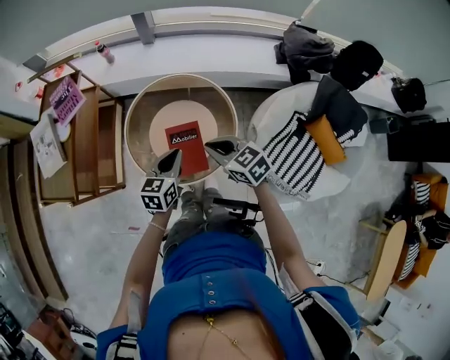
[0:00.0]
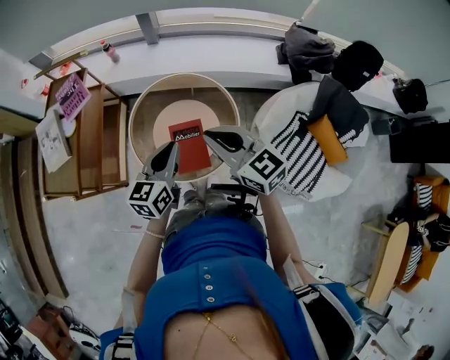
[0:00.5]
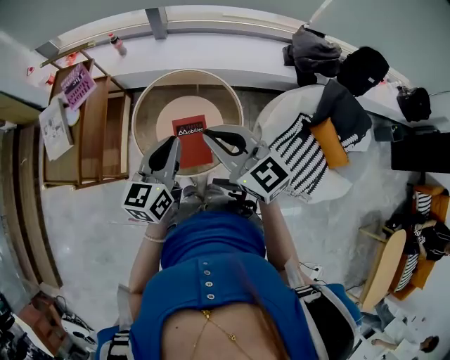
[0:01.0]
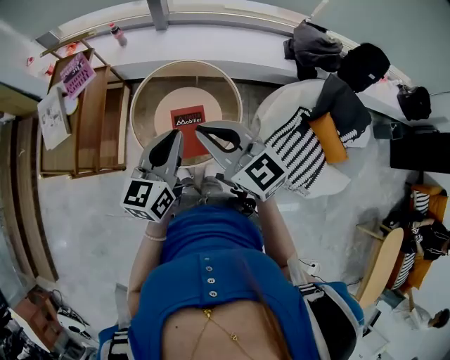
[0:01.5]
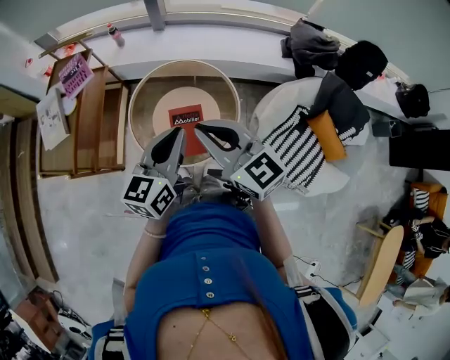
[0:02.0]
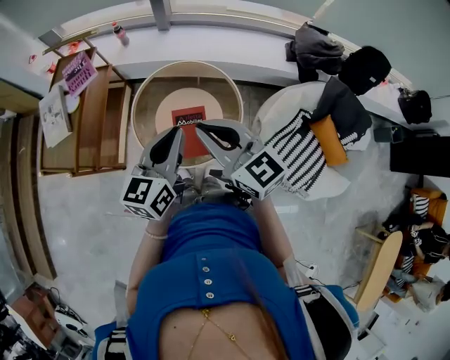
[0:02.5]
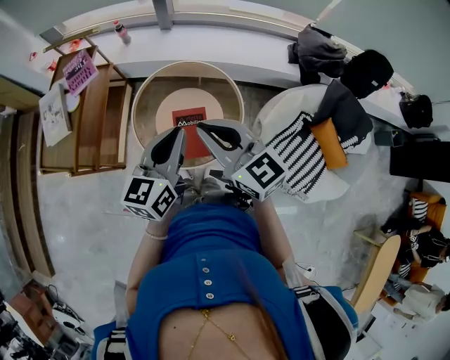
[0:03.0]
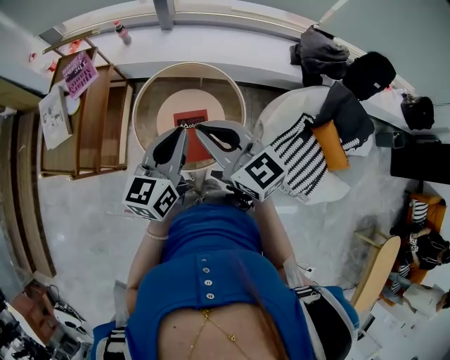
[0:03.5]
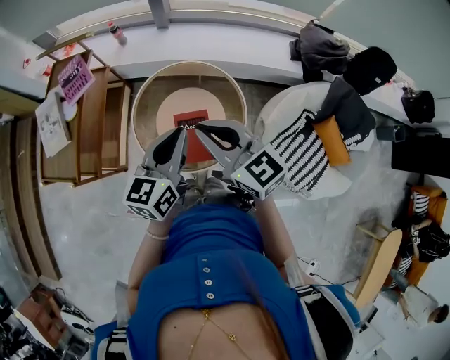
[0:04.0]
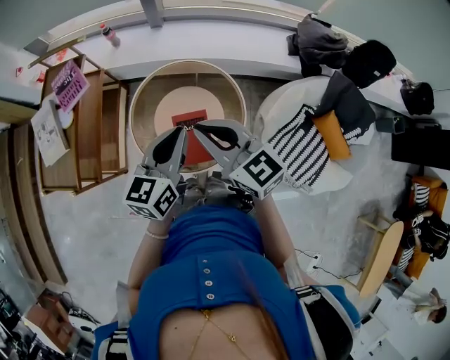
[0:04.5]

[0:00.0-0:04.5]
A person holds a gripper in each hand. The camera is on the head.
0:00.0 to 0:02.0: Both grippers travel together upward, about 20 cm. The right gripper rotates roughly 30 degrees.
0:02.0 to 0:04.5: Both grippers travel together forward, approximately 10 cm.

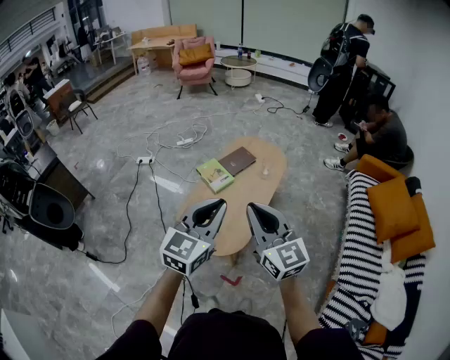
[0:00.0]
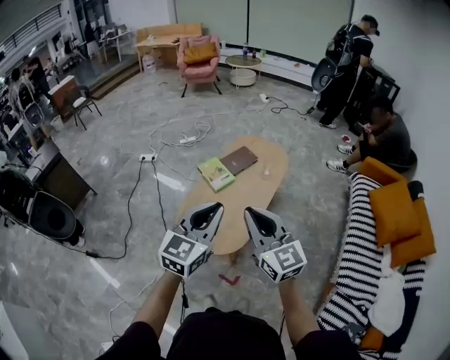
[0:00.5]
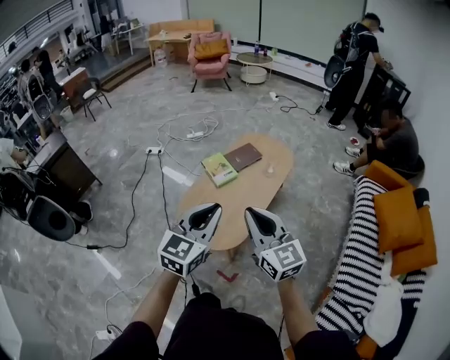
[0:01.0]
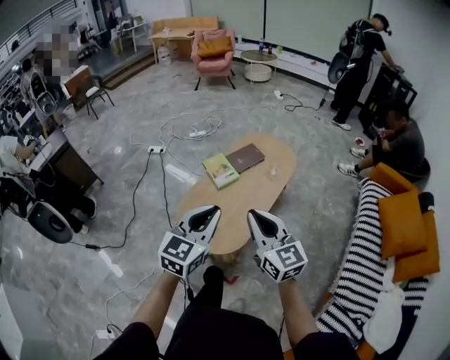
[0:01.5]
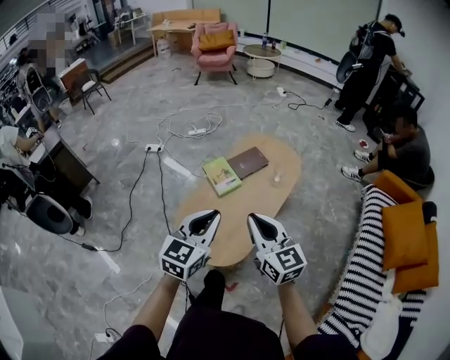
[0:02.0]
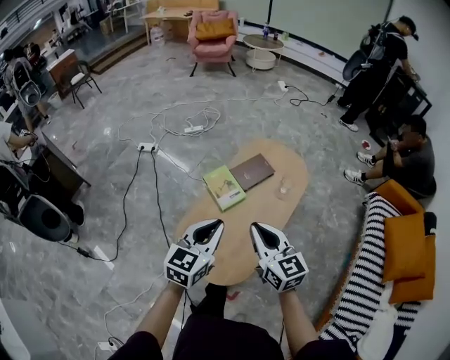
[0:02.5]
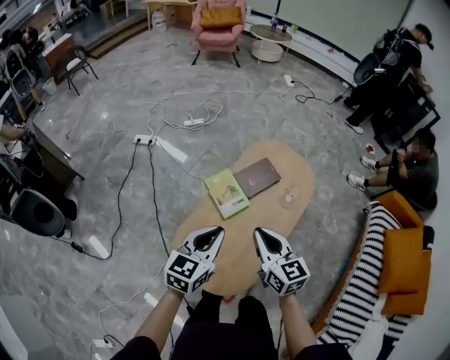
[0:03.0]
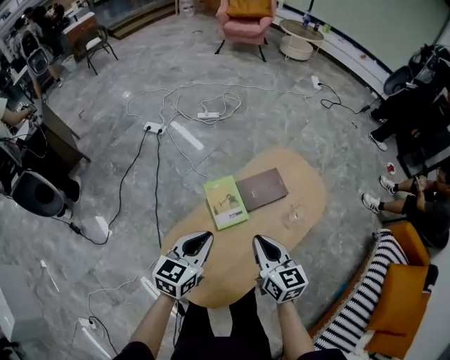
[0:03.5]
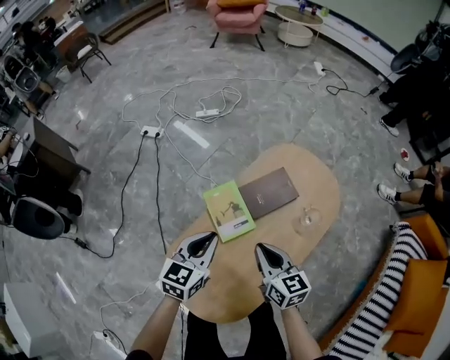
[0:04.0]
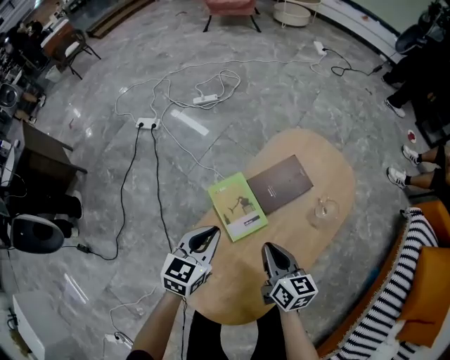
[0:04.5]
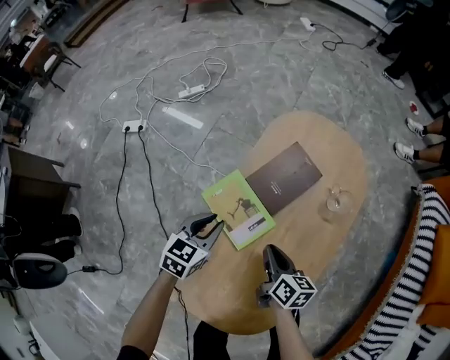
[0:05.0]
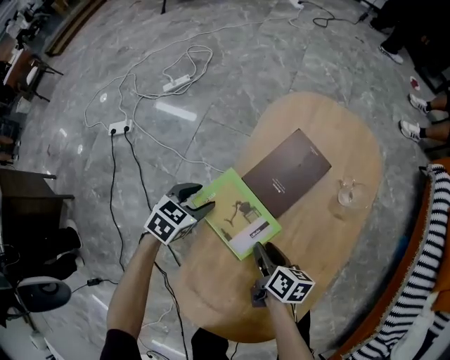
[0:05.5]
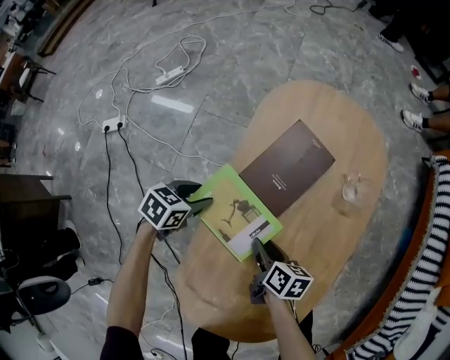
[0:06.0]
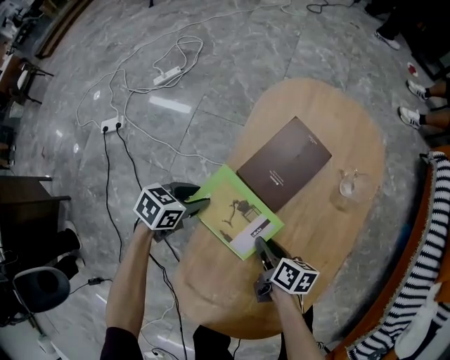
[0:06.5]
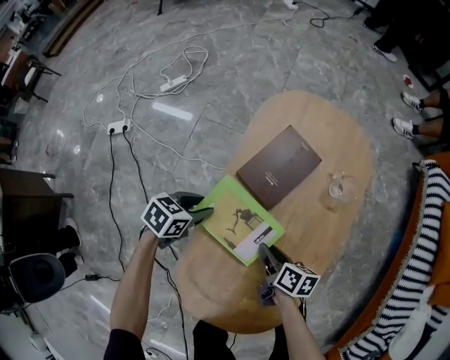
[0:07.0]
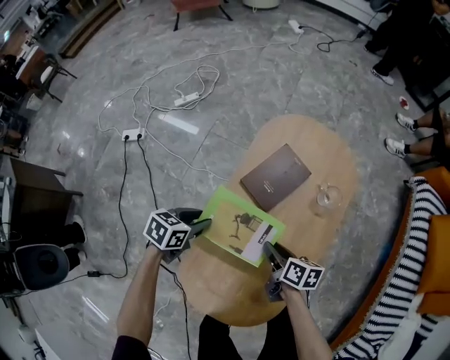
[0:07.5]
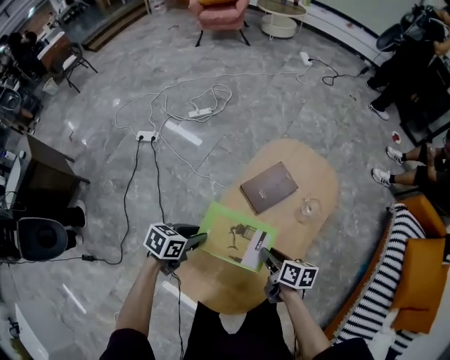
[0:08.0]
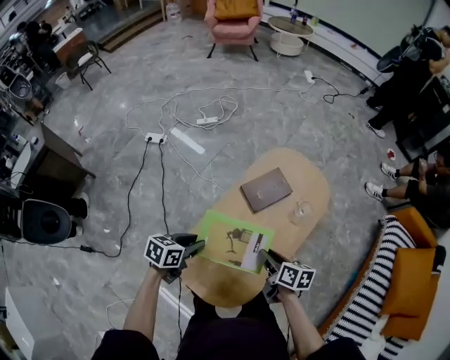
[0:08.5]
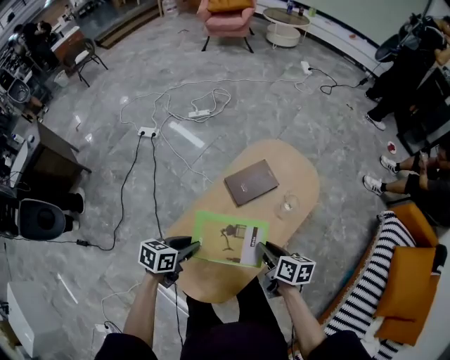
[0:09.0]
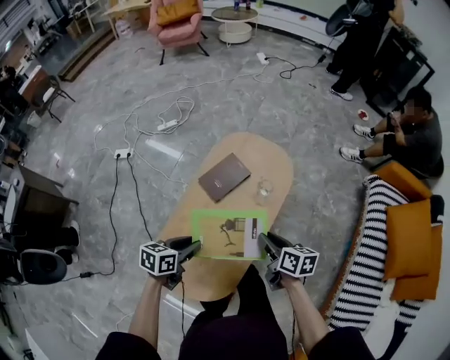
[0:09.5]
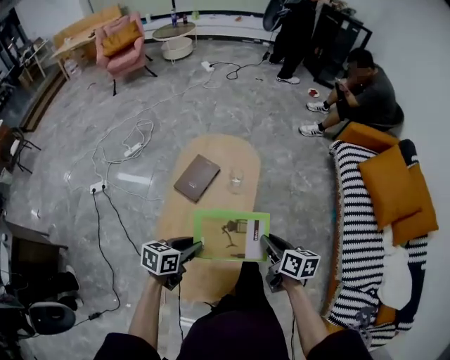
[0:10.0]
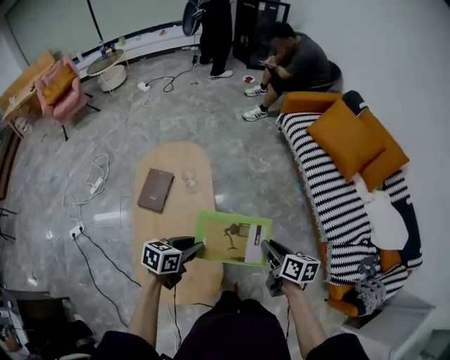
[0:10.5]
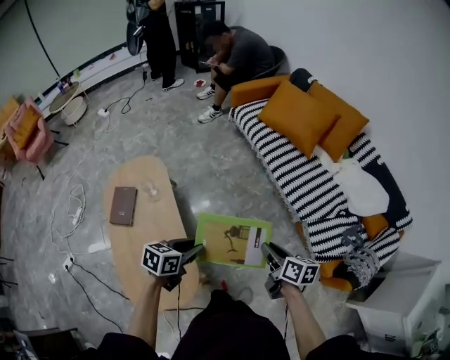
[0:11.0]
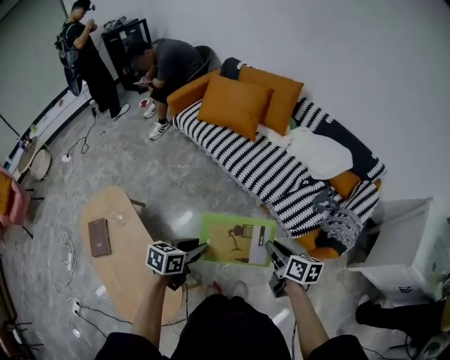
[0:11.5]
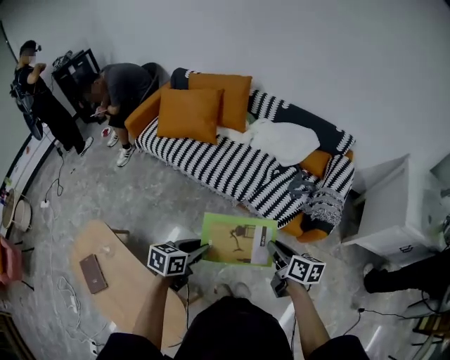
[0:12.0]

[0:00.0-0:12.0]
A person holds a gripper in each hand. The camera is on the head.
0:00.0 to 0:02.0: Both grippers travel together forward and downward, about 15 cm.
0:02.0 to 0:04.0: The pair of grippers is taken forward, some 40 cm. The two grippers go roughly 25 cm downward. The left gripper rotates about 20 degrees; the right gripper rotates about 30 degrees.
0:04.0 to 0:06.0: Both grippers move downward, some 35 cm. The right gripper twists some 50 degrees clockwise, seen from behind, and opens up; the left gripper turns by about 50 degrees, and opens its fingers.
0:06.0 to 0:08.0: The left gripper is displaced upward and backward by about 35 cm, and swivels some 20 degrees. Meanwhile the right gripper moves upward, approximately 30 cm.
0:08.0 to 0:10.0: The right gripper ends up approximately 30 cm from where it was, and changes its angle by approximately 30 degrees. Meanwhile the left gripper shifts by approximately 25 cm.
0:10.0 to 0:12.0: Both grippers are carried about 60 cm. The left gripper rotates about 70 degrees. Meanwhile the right gripper changes its angle by some 70 degrees.

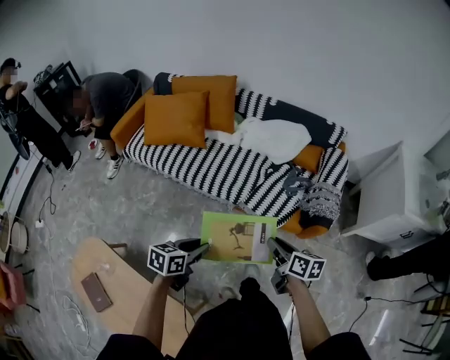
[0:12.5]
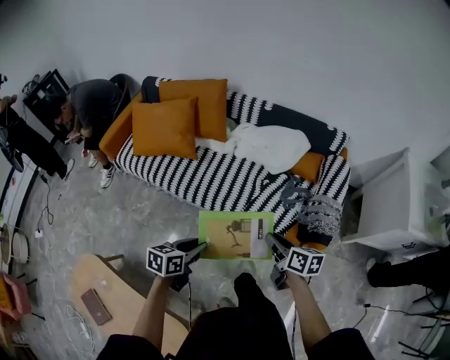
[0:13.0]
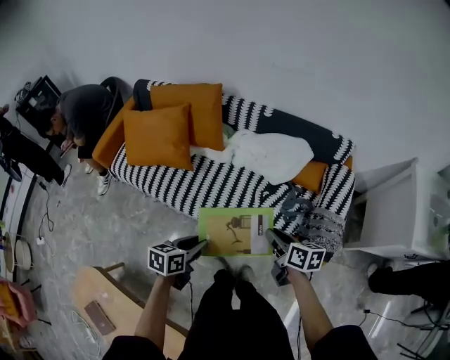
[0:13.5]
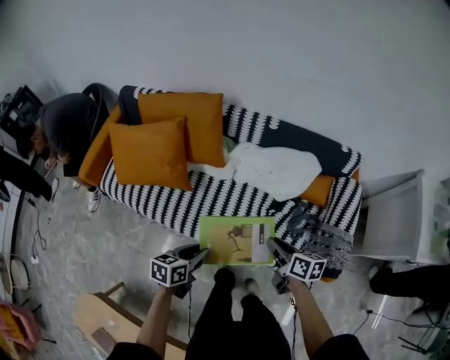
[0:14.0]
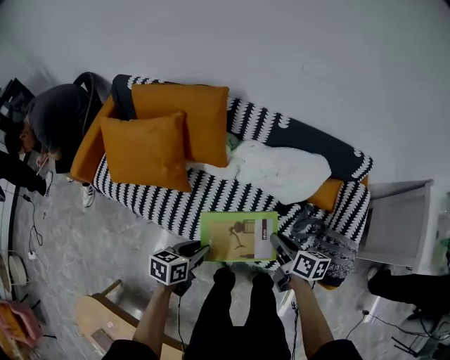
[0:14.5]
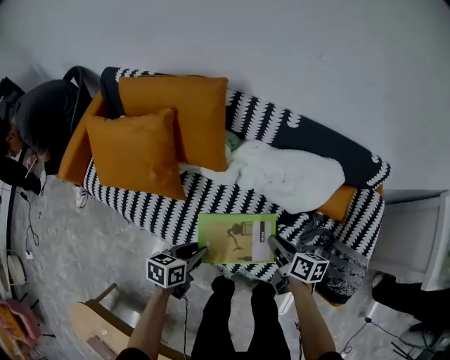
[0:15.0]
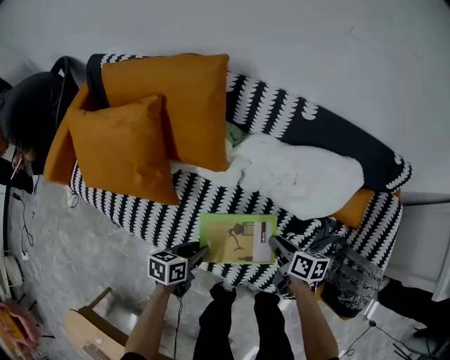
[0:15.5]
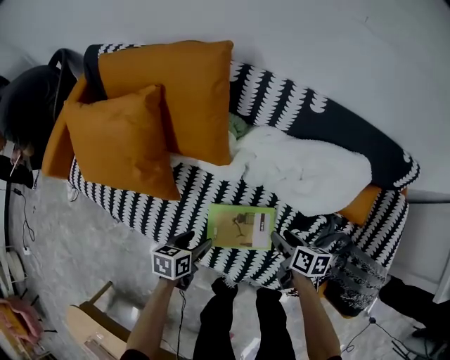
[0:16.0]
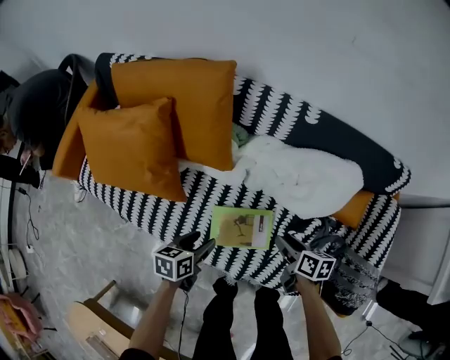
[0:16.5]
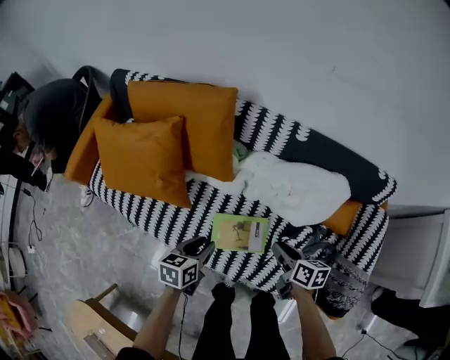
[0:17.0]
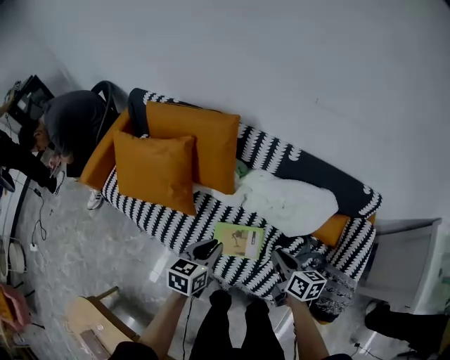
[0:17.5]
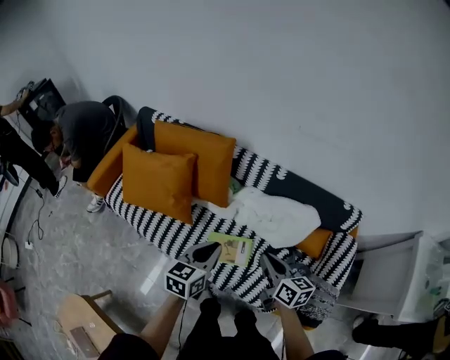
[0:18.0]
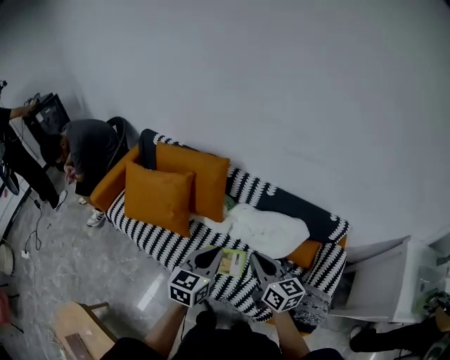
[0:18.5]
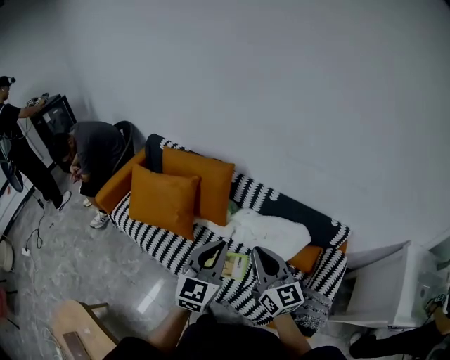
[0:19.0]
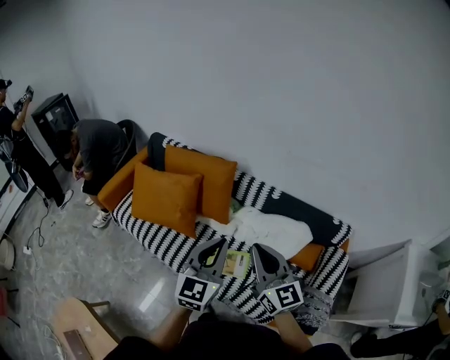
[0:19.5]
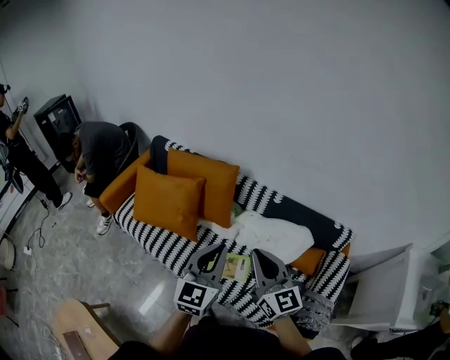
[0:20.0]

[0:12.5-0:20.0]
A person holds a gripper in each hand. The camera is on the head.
0:12.5 to 0:14.5: The pair of grippers is taken forward, roughly 40 cm.
0:14.5 to 0:16.5: Both grippers travel together downward and forward, about 25 cm. The left gripper opens its fingers. The right gripper opens up.
0:16.5 to 0:18.0: Both grippers travel together upward, roughly 35 cm. The right gripper changes its angle by about 30 degrees, and closes up; the left gripper rotates approximately 30 degrees, and closes up.
0:18.0 to 0:20.0: The two grippers go about 20 cm upward. The left gripper turns by some 30 degrees. The right gripper swivels some 40 degrees.

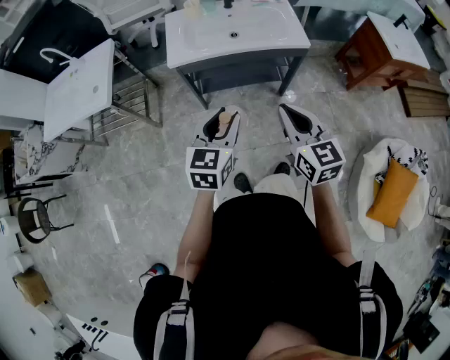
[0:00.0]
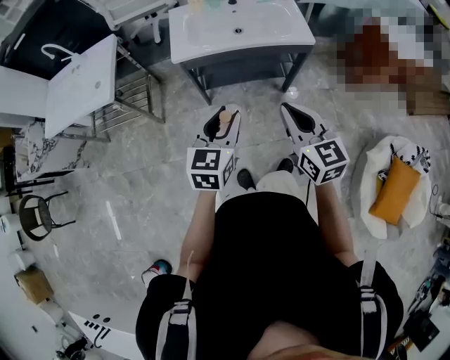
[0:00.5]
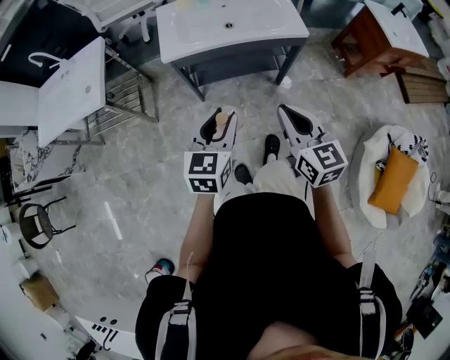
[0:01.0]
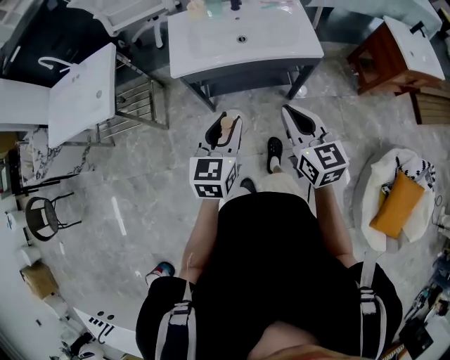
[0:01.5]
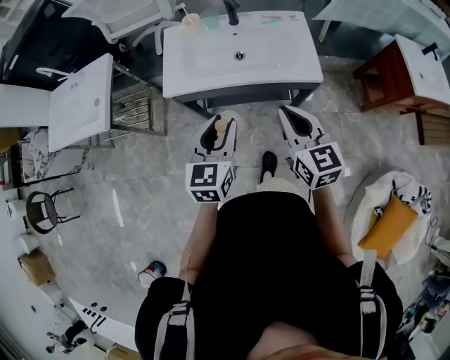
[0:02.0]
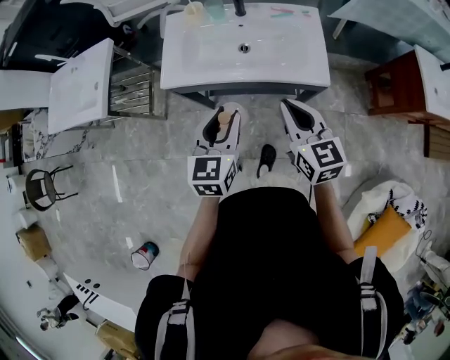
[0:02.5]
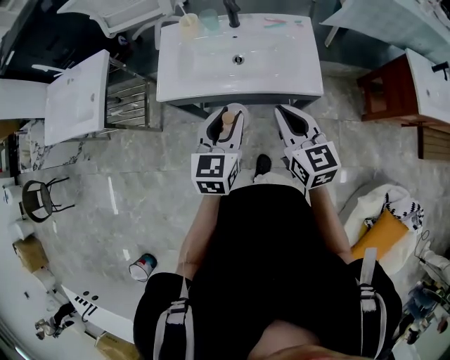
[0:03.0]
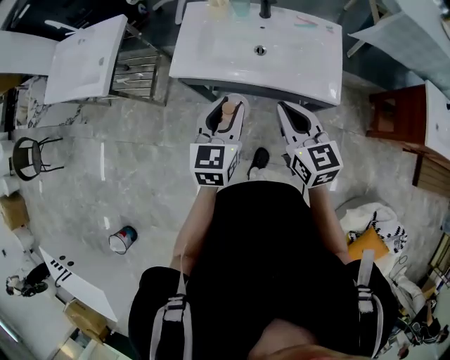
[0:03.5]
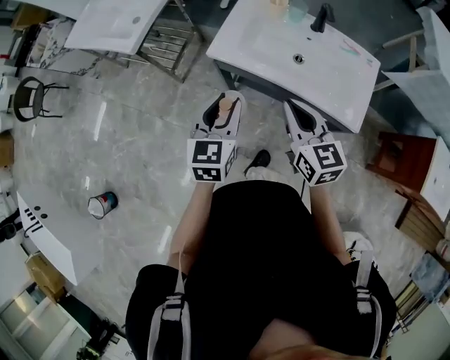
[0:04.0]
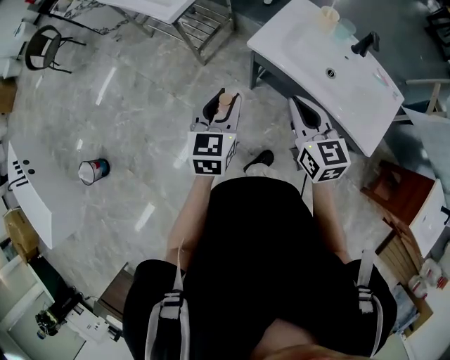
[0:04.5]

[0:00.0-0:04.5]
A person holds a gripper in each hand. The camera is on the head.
0:00.0 to 0:02.0: Both grippers move forward, some 20 cm.
0:02.0 to 0:04.5: The right gripper ends up about 20 cm from where it was, and turns by roughly 40 degrees. Meanwhile the left gripper moves some 20 cm, and changes its angle by roughly 40 degrees.
